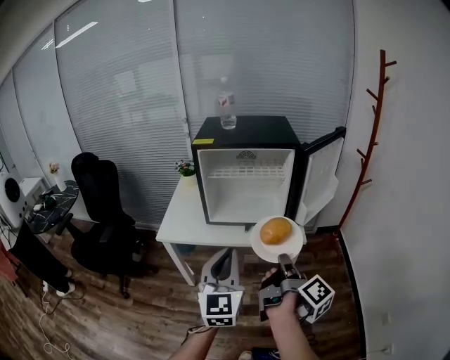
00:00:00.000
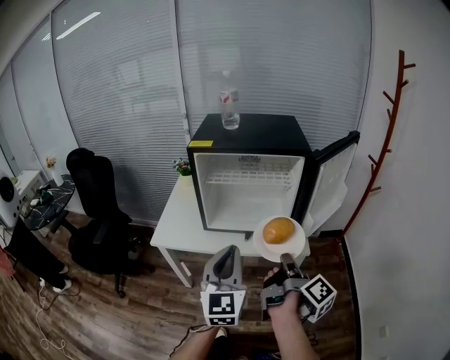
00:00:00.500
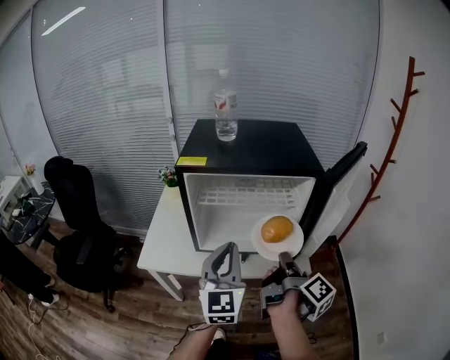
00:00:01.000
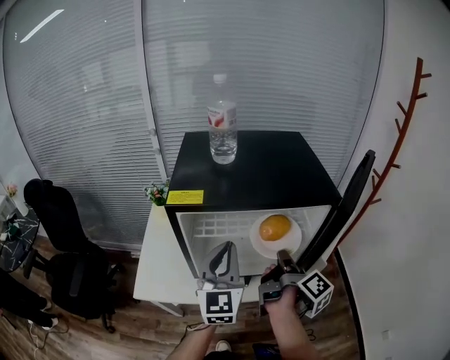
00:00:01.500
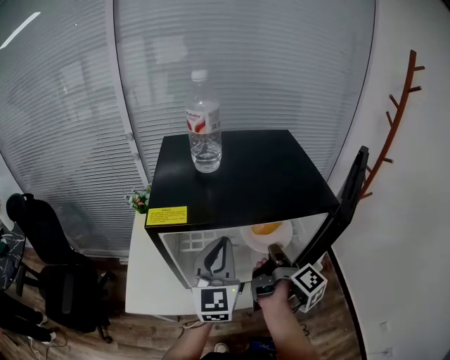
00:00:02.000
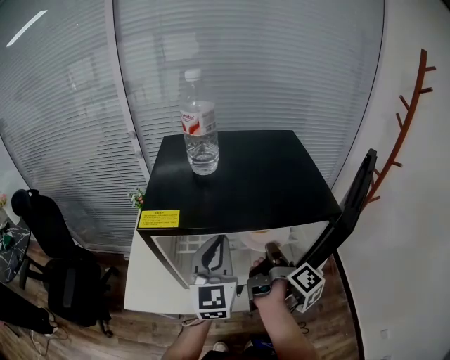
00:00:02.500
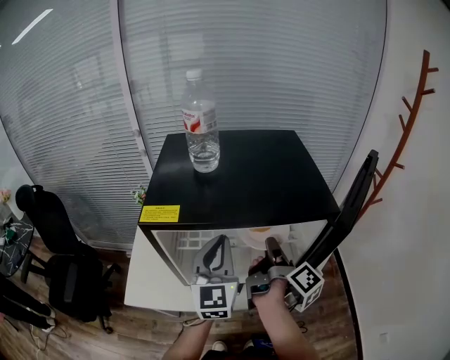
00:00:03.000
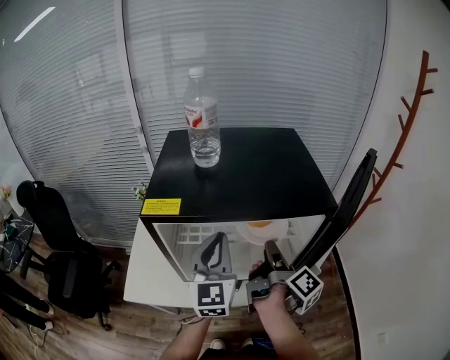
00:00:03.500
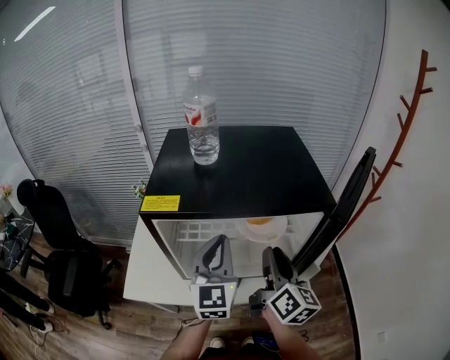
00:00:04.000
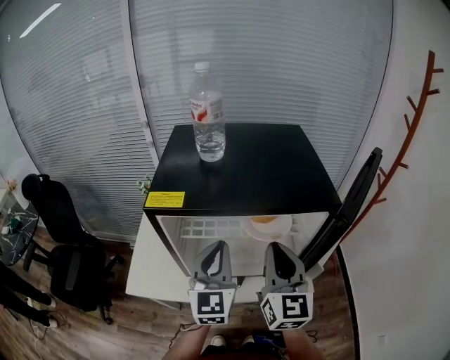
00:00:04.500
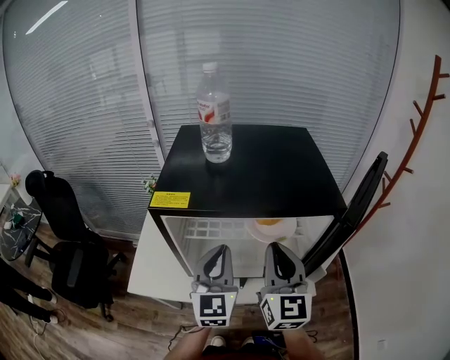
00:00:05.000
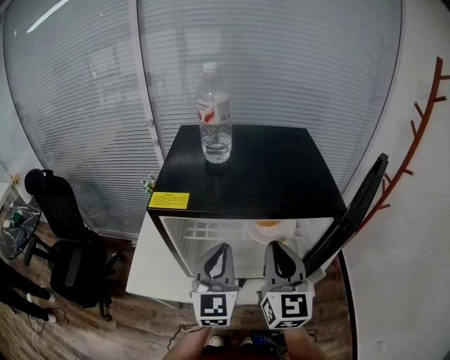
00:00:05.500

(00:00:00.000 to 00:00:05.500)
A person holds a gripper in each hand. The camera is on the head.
00:00:00.000 - 00:00:02.000: The left gripper moves some 40 cm.

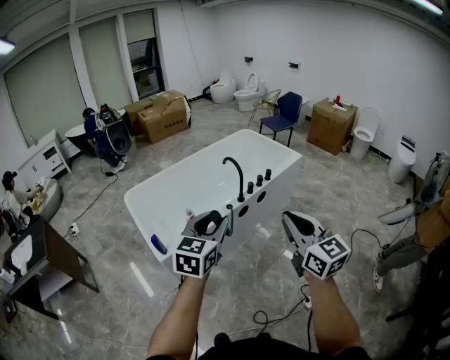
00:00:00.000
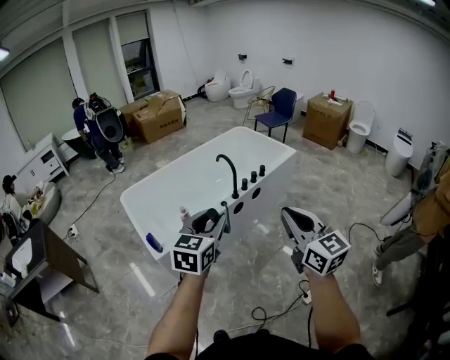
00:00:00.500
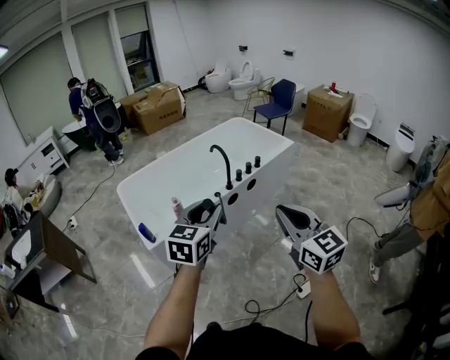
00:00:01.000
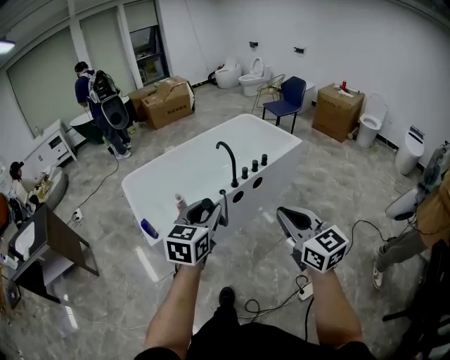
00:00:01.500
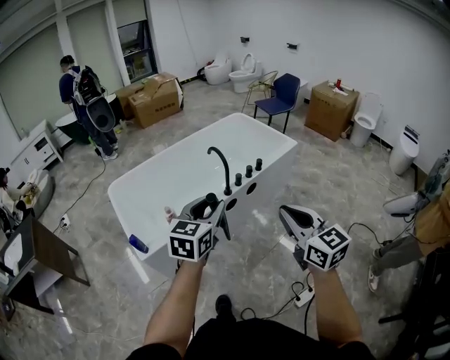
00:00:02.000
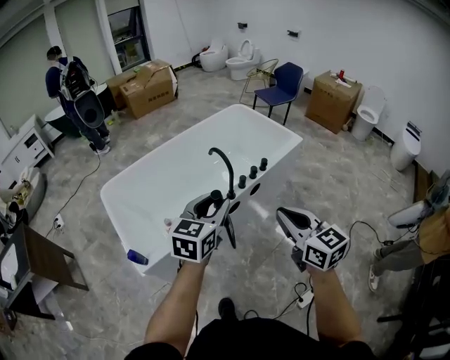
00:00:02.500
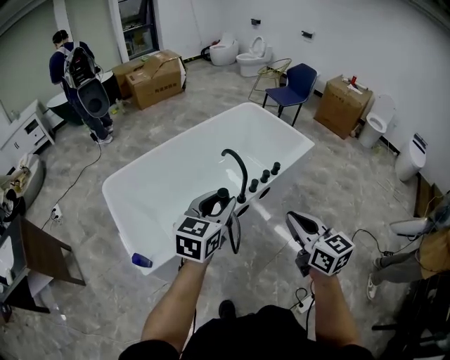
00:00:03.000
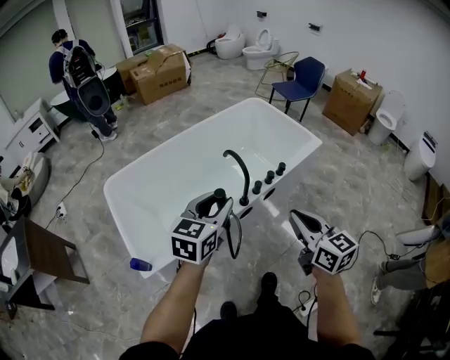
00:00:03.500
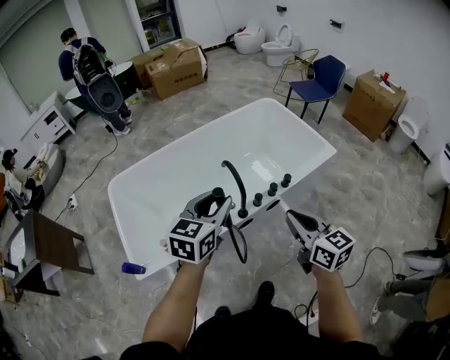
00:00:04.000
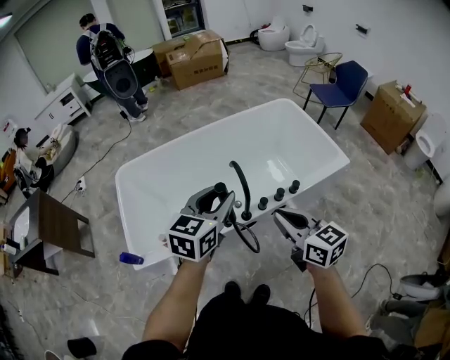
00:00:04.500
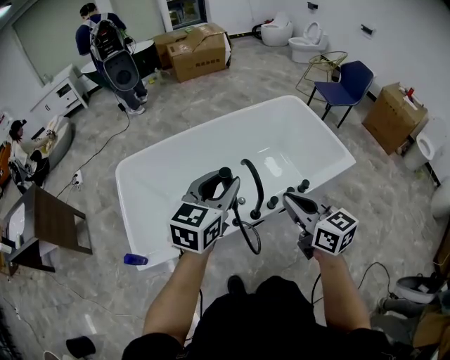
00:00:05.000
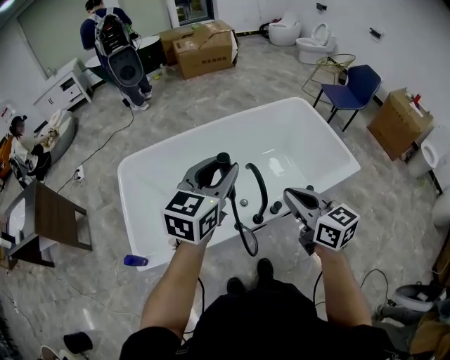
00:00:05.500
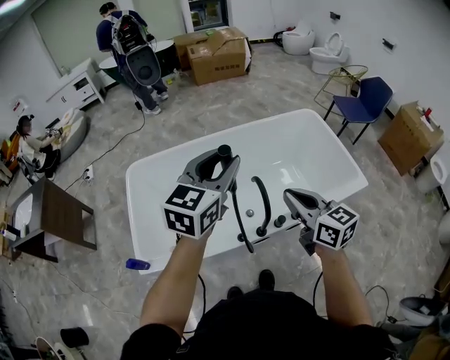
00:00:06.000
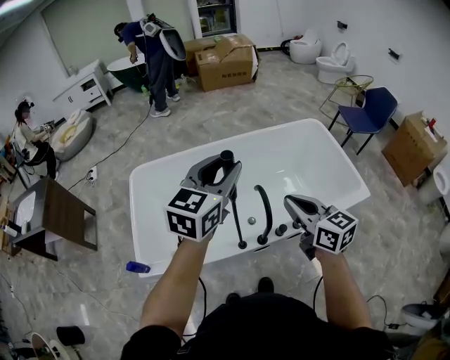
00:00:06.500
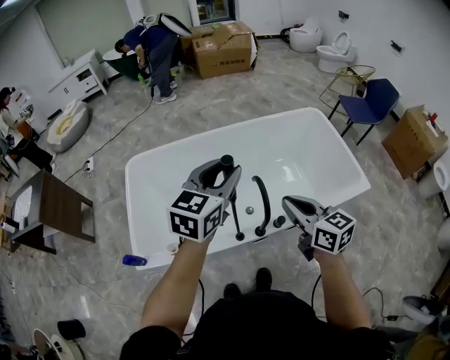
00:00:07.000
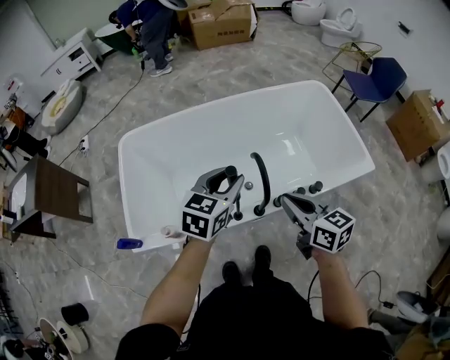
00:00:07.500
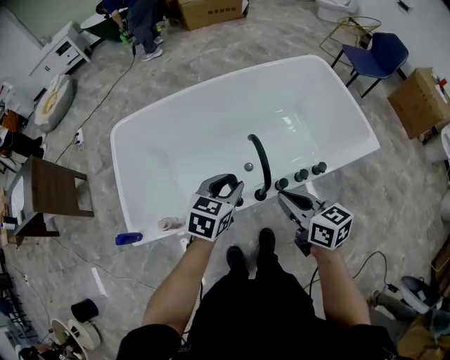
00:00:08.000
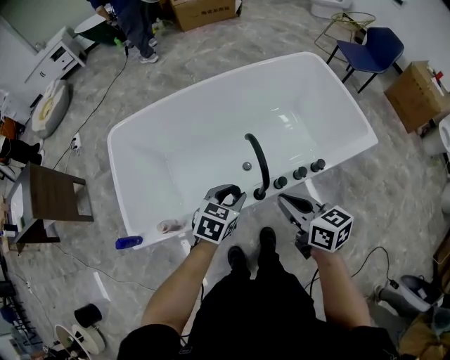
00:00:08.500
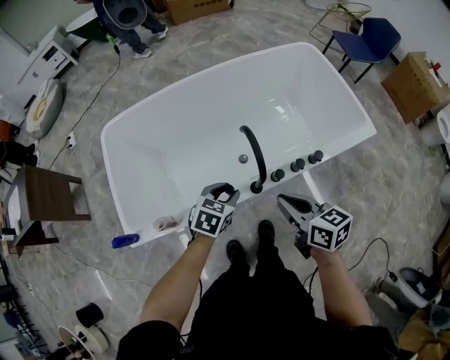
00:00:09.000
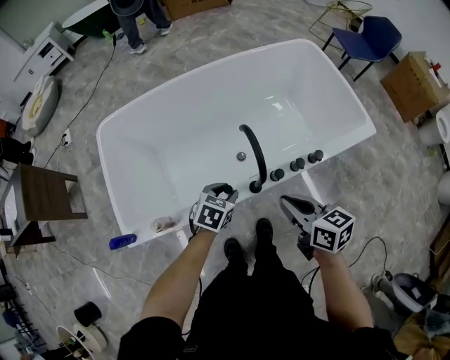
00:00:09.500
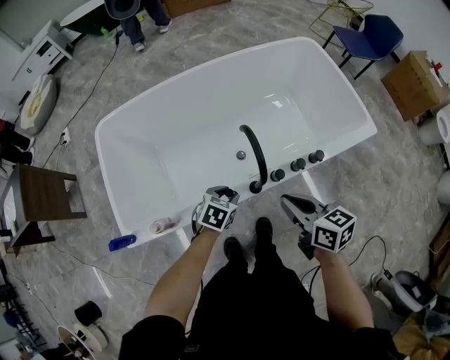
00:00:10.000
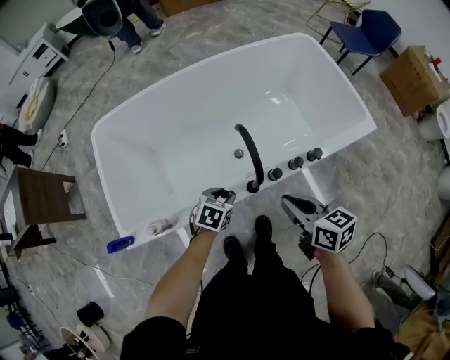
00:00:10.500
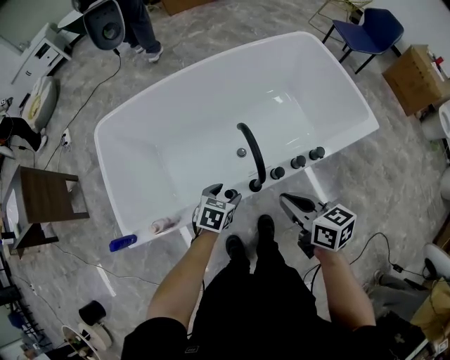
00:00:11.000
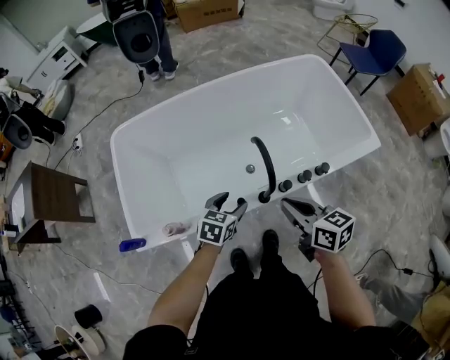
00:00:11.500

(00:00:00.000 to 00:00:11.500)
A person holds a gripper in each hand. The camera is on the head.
00:00:00.000 - 00:00:02.000: Both grippers move forward and to the right, about 10 cm.
00:00:02.000 - 00:00:04.000: Both grippers travel together forward, approximately 25 cm.
00:00:04.000 - 00:00:06.000: The left gripper goes about 15 cm forward and upward; the right gripper travels forward and to the left by roughly 20 cm.
00:00:06.000 - 00:00:07.500: The left gripper is displaced downward by approximately 15 cm. The right gripper moves downward, about 10 cm.
00:00:07.500 - 00:00:09.500: The right gripper goes approximately 10 cm downward. The left gripper shifts some 25 cm downward, and rotates about 30 degrees.
00:00:09.500 - 00:00:11.500: The left gripper opens.

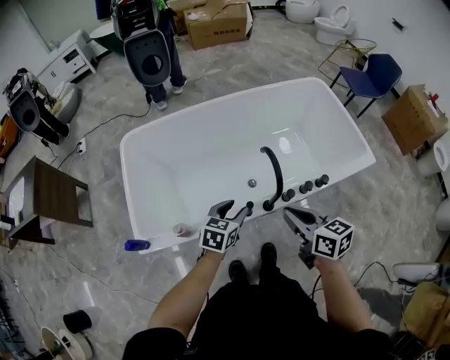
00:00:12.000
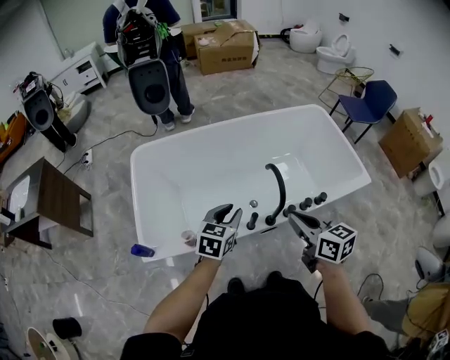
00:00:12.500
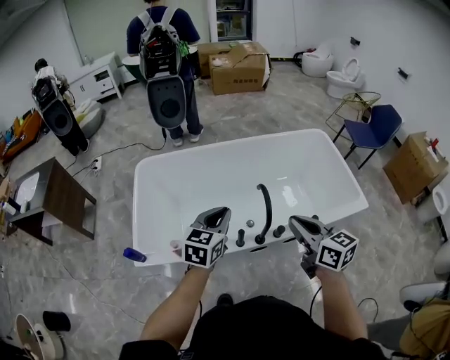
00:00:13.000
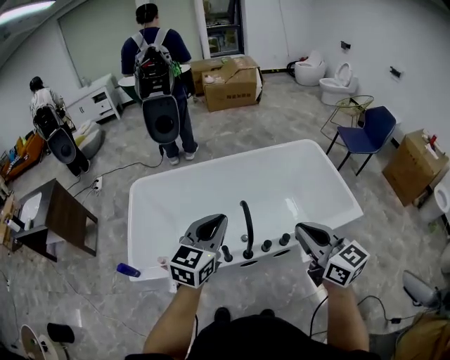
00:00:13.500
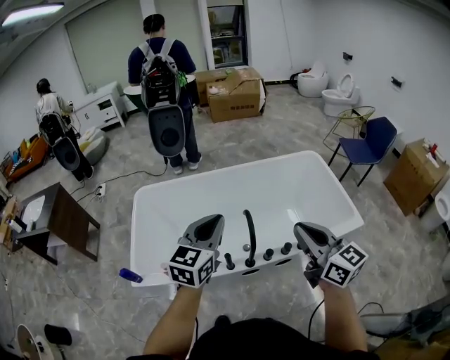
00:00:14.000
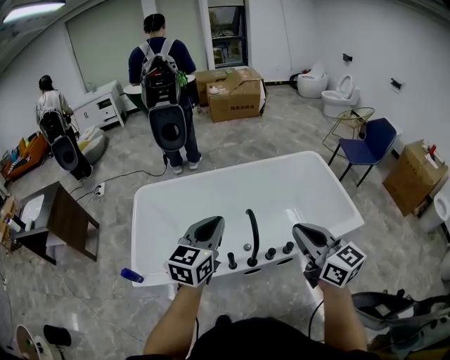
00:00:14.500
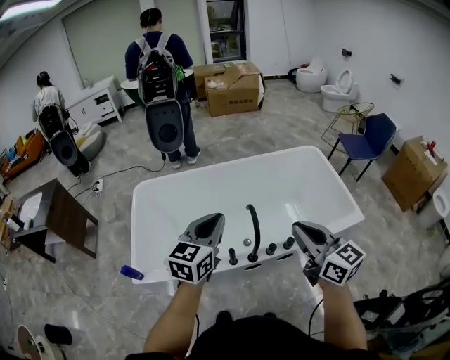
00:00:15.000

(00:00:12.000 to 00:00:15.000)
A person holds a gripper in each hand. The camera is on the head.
00:00:12.000 - 00:00:13.500: The right gripper heads upward and to the right, covering roughly 20 cm, and swivels roughly 30 degrees. The left gripper moves upward, approximately 25 cm, changes its angle by approximately 30 degrees, and closes up.
00:00:13.500 - 00:00:15.000: The grippers make only small movements.

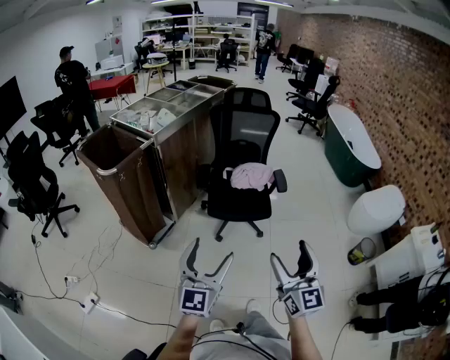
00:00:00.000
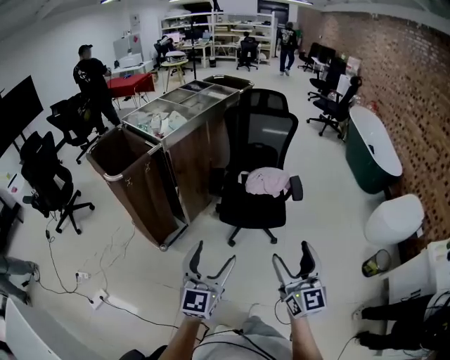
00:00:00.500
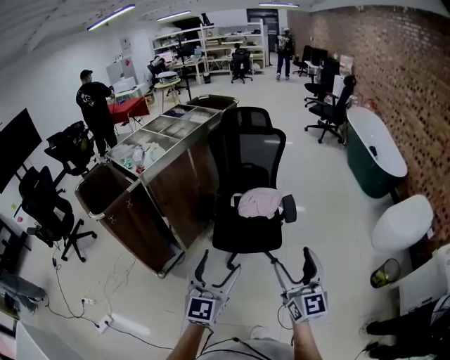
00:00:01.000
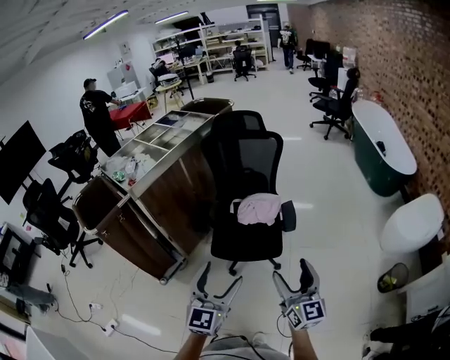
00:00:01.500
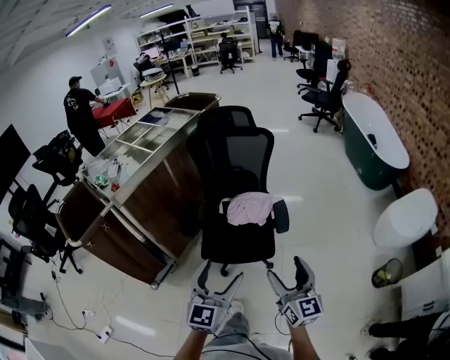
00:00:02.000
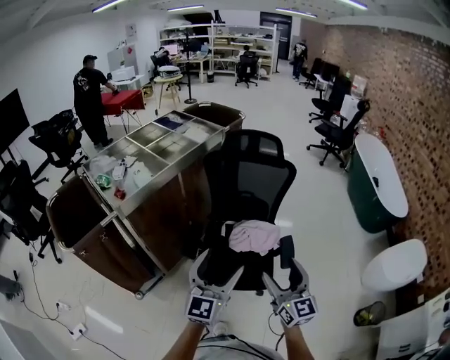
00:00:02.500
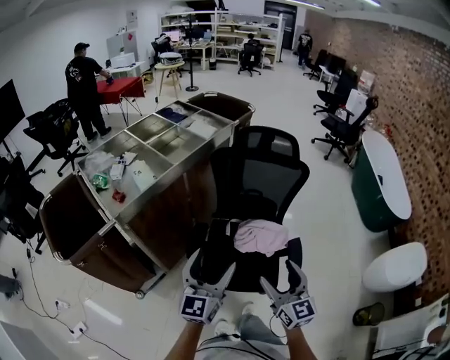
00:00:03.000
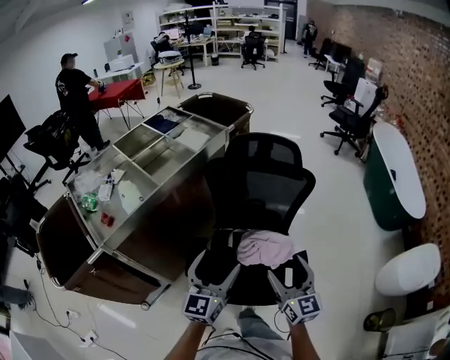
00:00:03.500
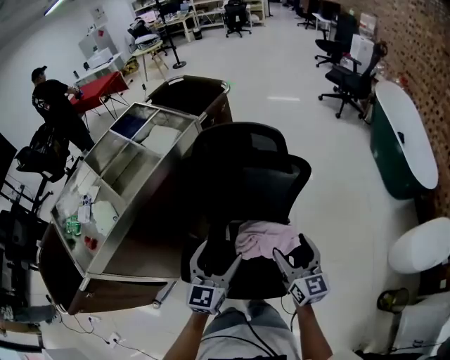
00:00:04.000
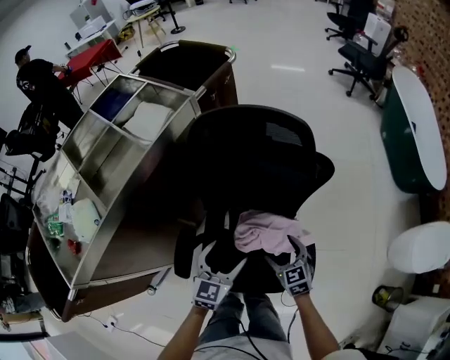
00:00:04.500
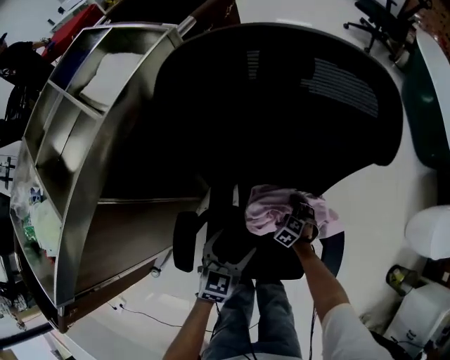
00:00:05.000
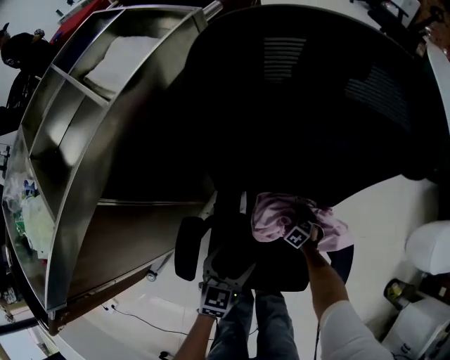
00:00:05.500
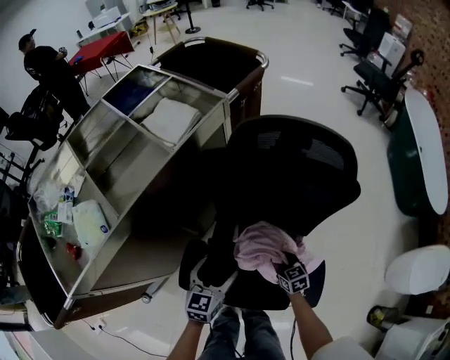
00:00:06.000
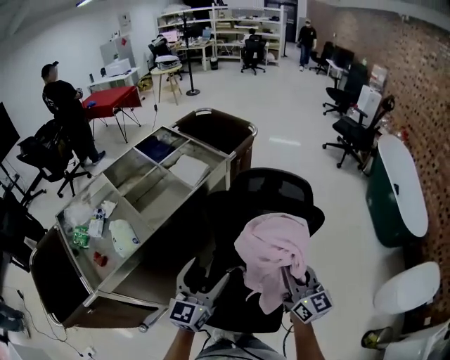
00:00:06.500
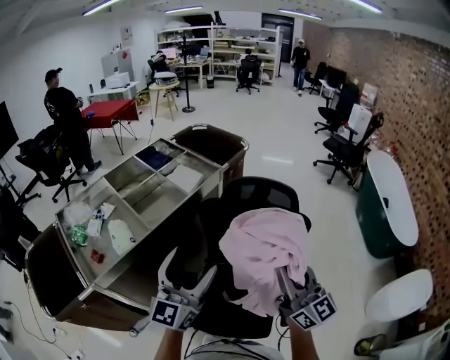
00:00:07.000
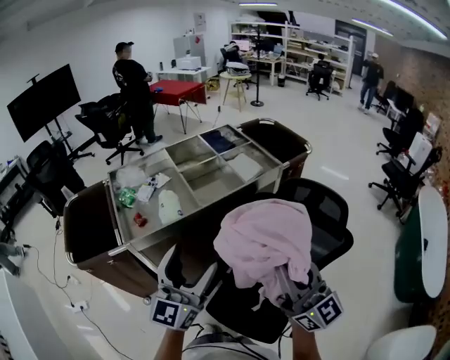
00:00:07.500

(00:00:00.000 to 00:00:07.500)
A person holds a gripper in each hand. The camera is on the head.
00:00:00.000 - 00:00:02.000: The grippers both shift forward and to the right by approximately 35 cm.
00:00:02.000 - 00:00:04.000: The two grippers travel together, forward, some 50 cm.
00:00:04.000 - 00:00:05.500: The right gripper is displaced downward by roughly 60 cm, tilts its fingers some 70 degrees downward, and opens and closes again, while the left gripper travels downward by approximately 35 cm, and changes its angle by approximately 30 degrees.
00:00:05.500 - 00:00:07.500: The left gripper shifts roughly 50 cm upward, and angles its fingers upward, by approximately 50 degrees, while the right gripper goes some 80 cm upward, tips its fingers upward by roughly 90 degrees, and closes its fingers.
